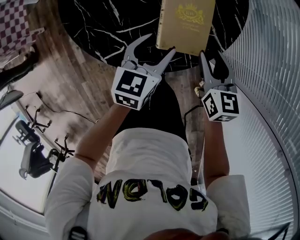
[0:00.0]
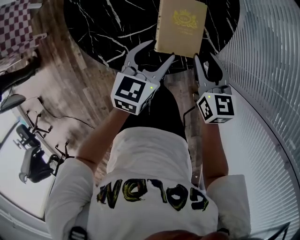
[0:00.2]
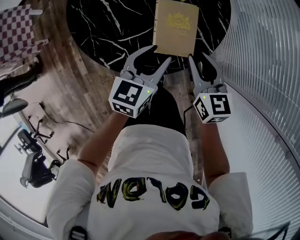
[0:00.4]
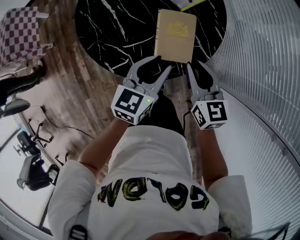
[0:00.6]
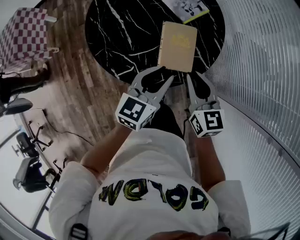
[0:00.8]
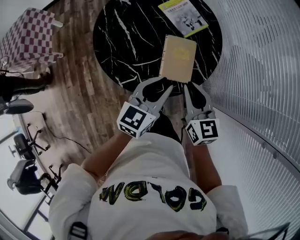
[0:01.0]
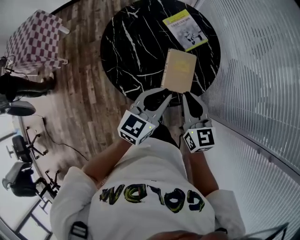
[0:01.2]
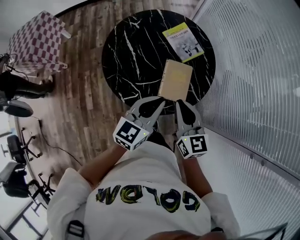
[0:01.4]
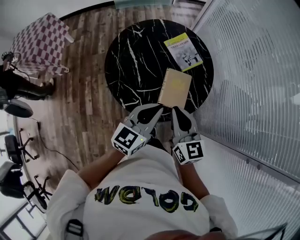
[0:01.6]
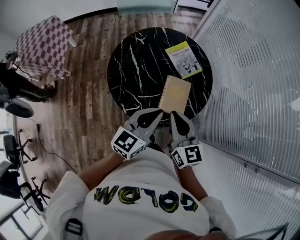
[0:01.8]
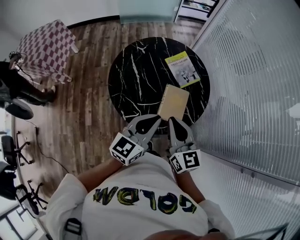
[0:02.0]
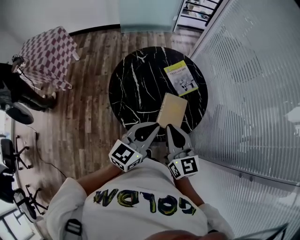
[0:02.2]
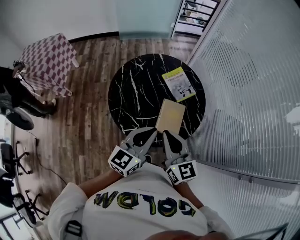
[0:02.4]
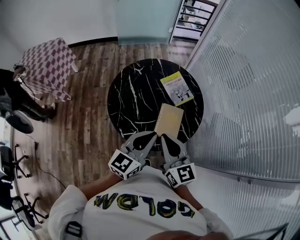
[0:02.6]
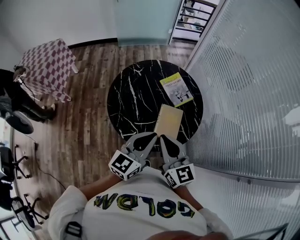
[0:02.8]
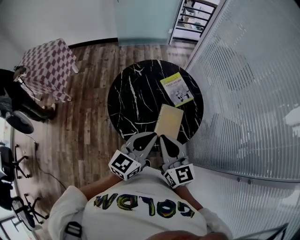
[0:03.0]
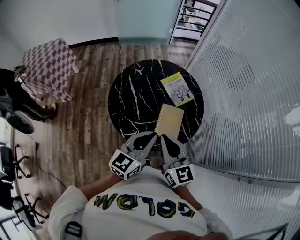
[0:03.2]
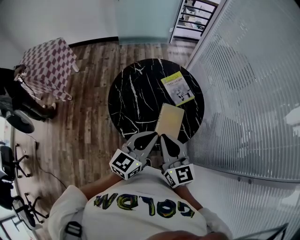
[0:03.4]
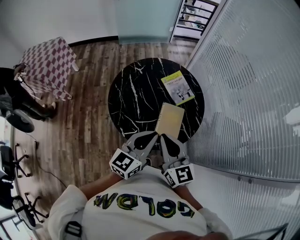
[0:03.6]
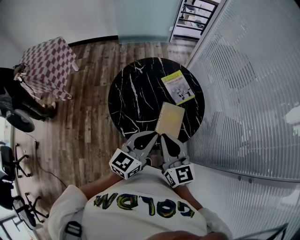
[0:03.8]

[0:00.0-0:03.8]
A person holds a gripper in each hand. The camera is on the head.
0:00.0 to 0:01.2: Both grippers travel together upward, approximately 20 cm. The left gripper closes; the right gripper closes up.
0:01.2 to 0:02.6: The left gripper heads upward, covering roughly 10 cm; the right gripper is displaced upward and to the left by approximately 15 cm.
0:02.6 to 0:03.8: Neither gripper changes place.

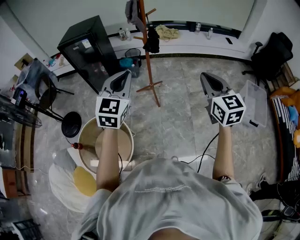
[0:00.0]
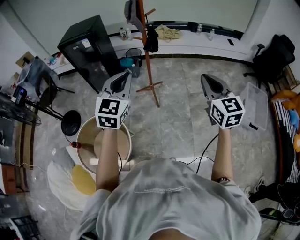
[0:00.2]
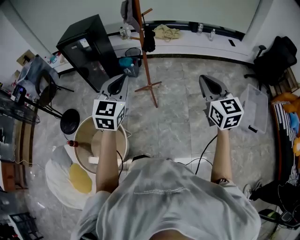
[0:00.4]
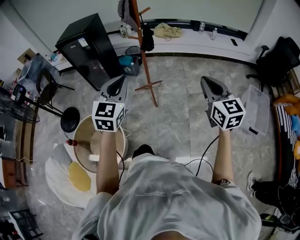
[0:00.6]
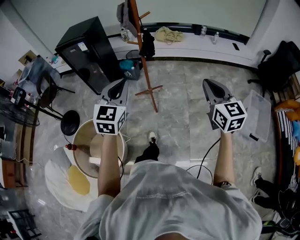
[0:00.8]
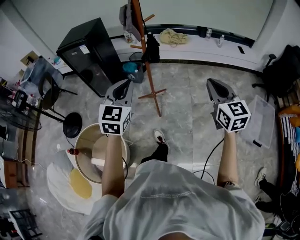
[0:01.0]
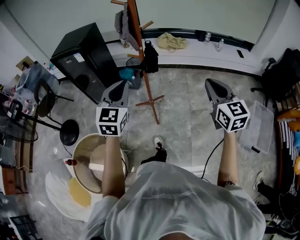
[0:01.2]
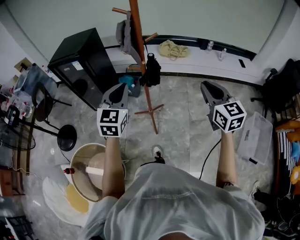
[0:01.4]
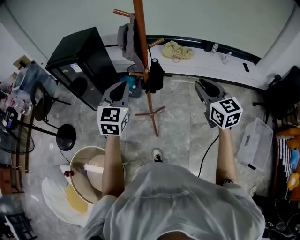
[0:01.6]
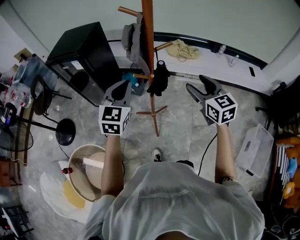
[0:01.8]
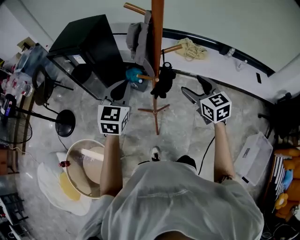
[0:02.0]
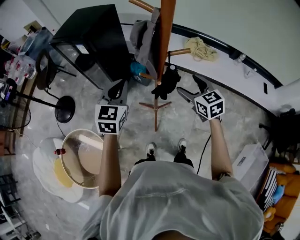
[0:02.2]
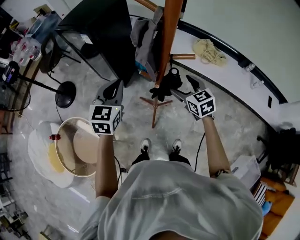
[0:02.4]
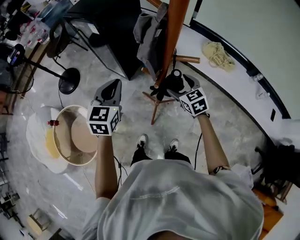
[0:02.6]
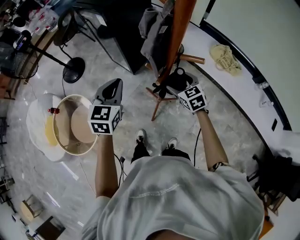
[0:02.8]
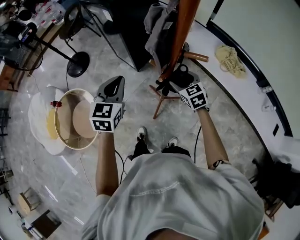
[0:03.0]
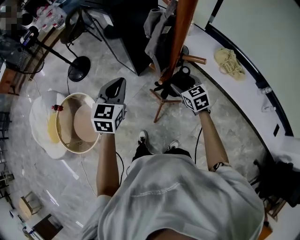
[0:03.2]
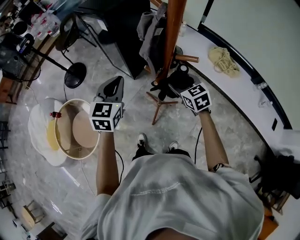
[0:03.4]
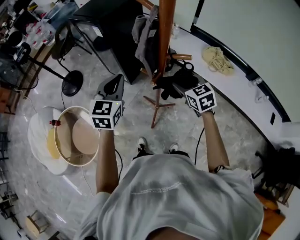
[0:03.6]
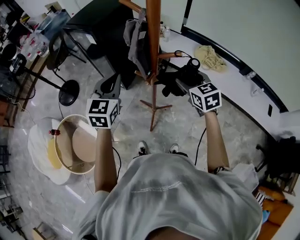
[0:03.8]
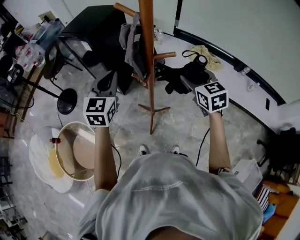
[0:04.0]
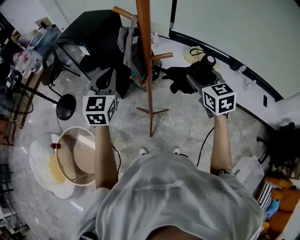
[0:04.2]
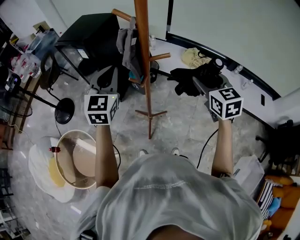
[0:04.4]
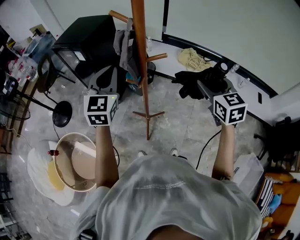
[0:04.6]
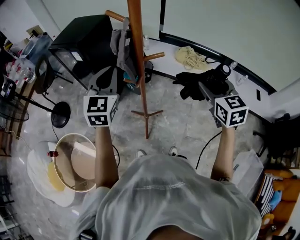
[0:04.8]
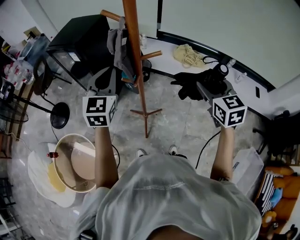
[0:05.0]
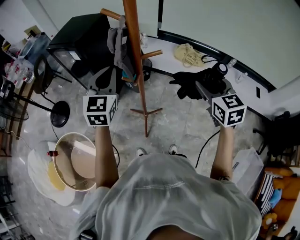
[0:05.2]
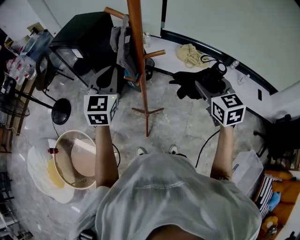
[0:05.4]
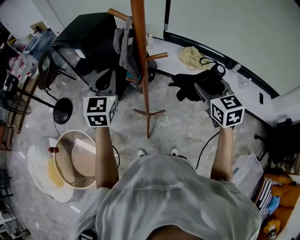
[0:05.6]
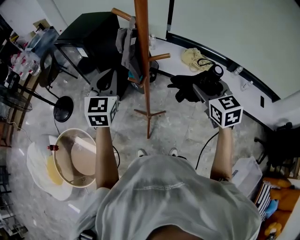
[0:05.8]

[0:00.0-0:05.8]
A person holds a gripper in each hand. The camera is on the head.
0:00.0 to 0:01.4: The grippers both shift forward by approximately 30 cm.
0:01.4 to 0:02.8: The right gripper ends up some 40 cm from where it was, rotates some 50 degrees, and opens its fingers. Meanwhile the left gripper moves some 15 cm, and rotates some 40 degrees.
0:02.8 to 0:04.4: The right gripper shifts about 30 cm upward, to the right and backward, and turns by approximately 30 degrees. The left gripper goes about 15 cm upward and to the right, and turns by some 20 degrees.
0:04.4 to 0:05.8: The grippers make only small movements.

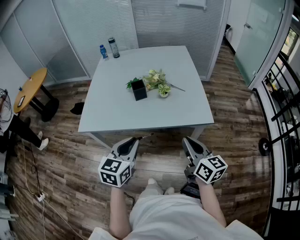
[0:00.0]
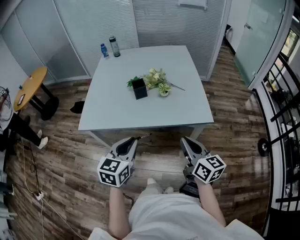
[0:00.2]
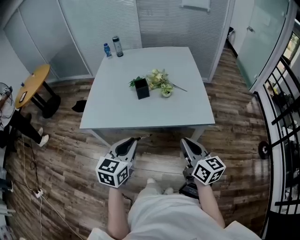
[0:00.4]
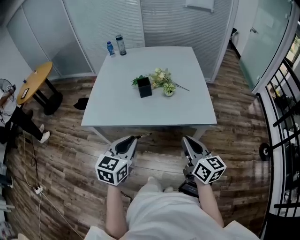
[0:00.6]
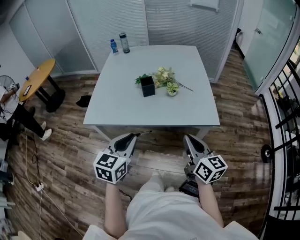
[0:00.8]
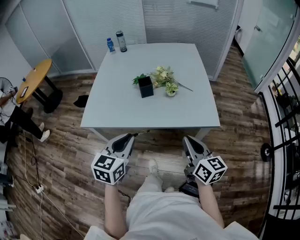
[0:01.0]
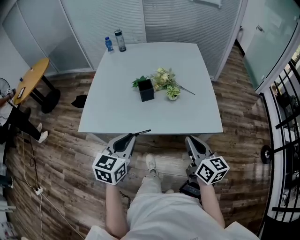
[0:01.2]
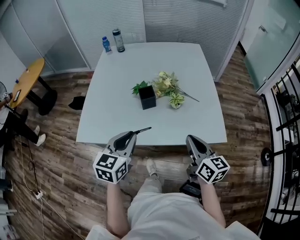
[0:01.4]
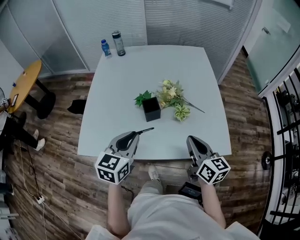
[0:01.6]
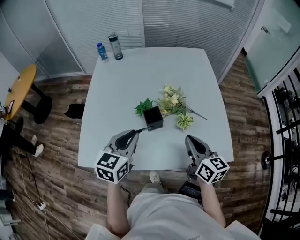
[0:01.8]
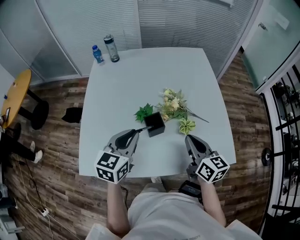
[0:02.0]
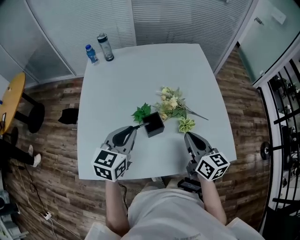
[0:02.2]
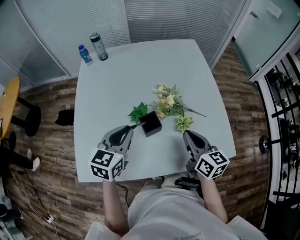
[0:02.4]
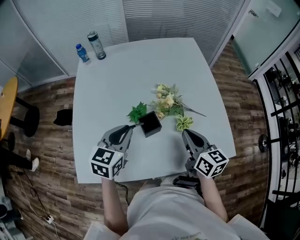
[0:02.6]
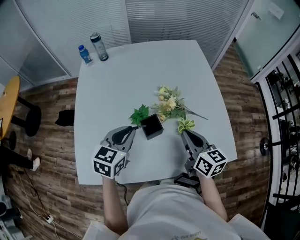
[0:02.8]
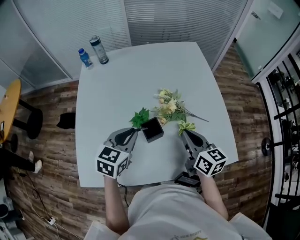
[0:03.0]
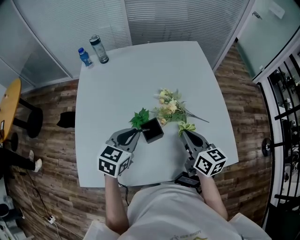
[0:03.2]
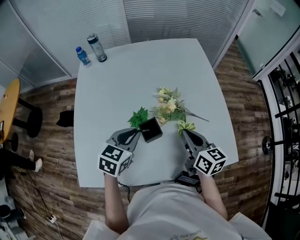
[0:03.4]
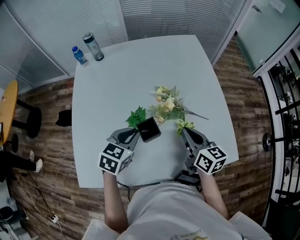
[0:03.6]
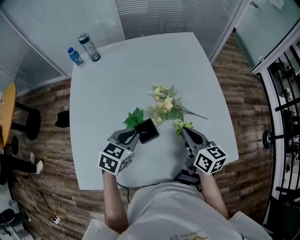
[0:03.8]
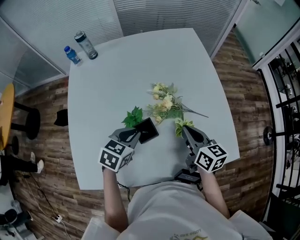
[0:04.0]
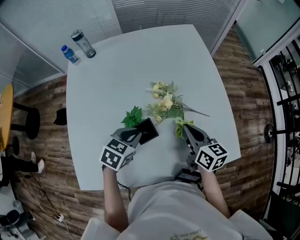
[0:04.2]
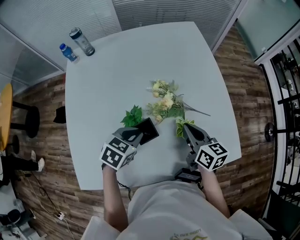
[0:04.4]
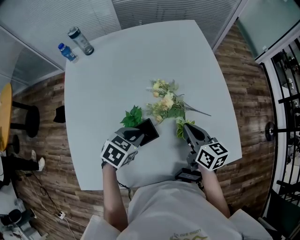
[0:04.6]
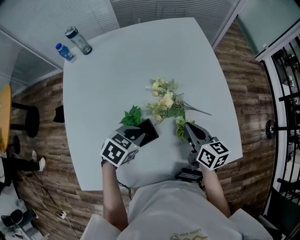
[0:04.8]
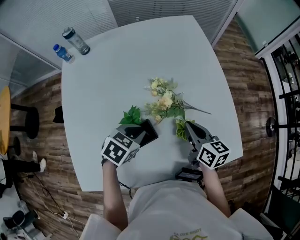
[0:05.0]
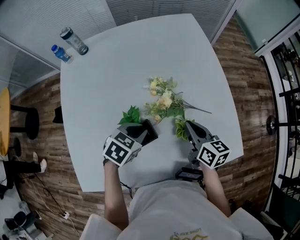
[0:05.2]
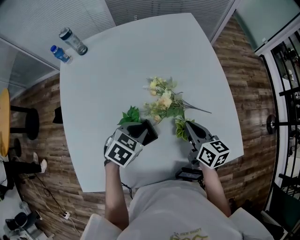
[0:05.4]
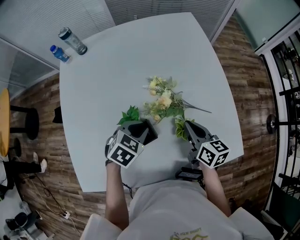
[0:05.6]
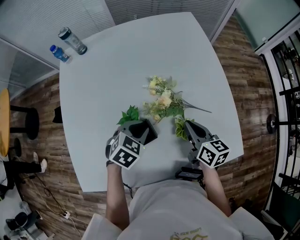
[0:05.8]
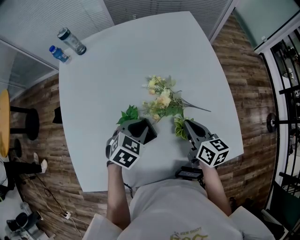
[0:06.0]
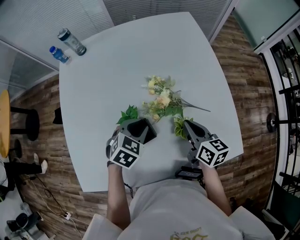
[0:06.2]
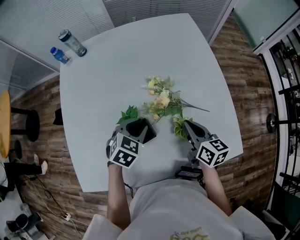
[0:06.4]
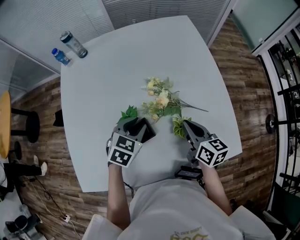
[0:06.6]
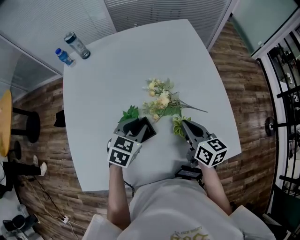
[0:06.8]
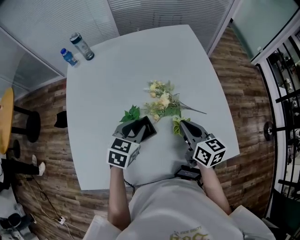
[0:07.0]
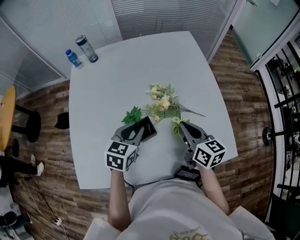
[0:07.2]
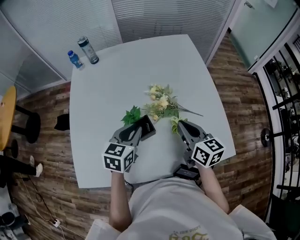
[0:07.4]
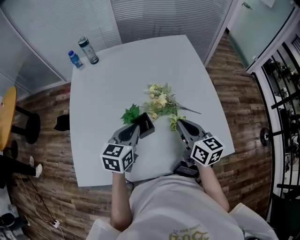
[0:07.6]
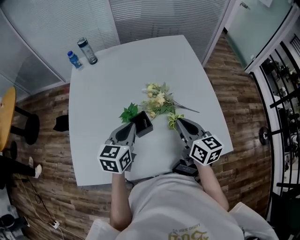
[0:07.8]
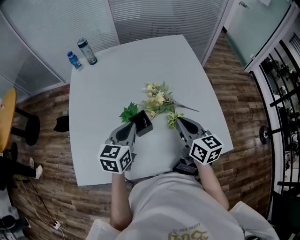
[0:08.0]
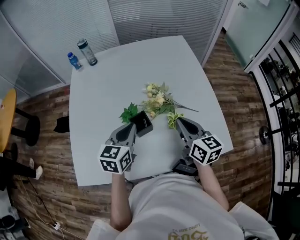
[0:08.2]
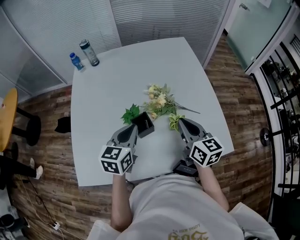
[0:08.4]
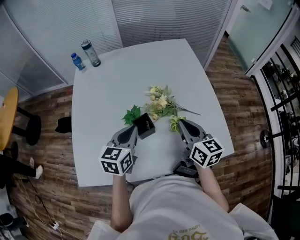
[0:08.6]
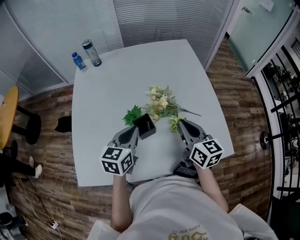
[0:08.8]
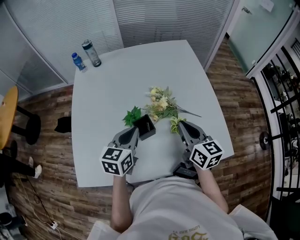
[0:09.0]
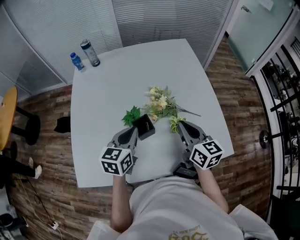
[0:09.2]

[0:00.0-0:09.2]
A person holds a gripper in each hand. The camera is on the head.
0:00.0 to 0:01.6: The two grippers go approximately 25 cm forward.
0:01.6 to 0:03.0: Both grippers move forward, some 15 cm.
0:03.0 to 0:04.6: The left gripper travels downward by about 10 cm, and changes its angle by approximately 30 degrees. Meanwhile the right gripper moves downward and forward, some 10 cm.
0:04.6 to 0:06.2: The grippers move only a little.
0:06.2 to 0:07.6: Both grippers move upward and backward, roughly 10 cm. The left gripper turns by approximately 40 degrees.
0:07.6 to 0:09.2: There are only small adjustments of the grippers.

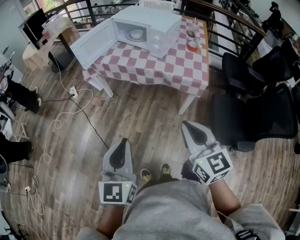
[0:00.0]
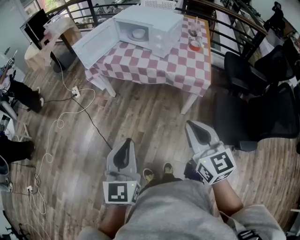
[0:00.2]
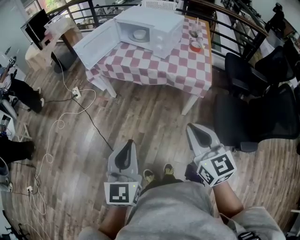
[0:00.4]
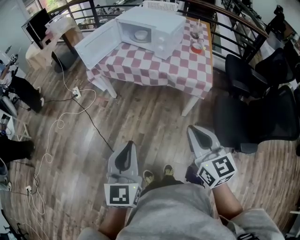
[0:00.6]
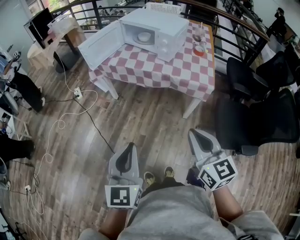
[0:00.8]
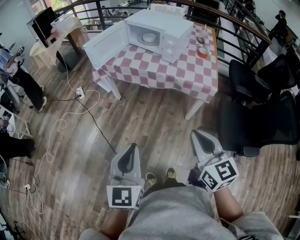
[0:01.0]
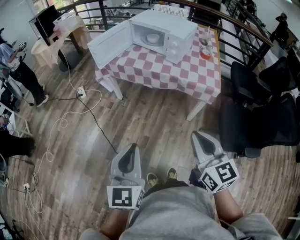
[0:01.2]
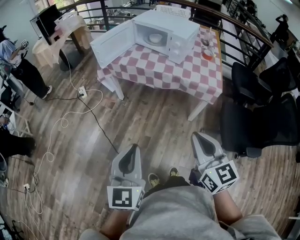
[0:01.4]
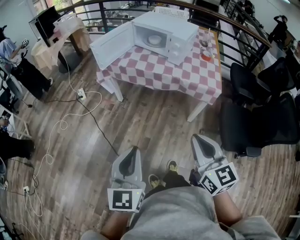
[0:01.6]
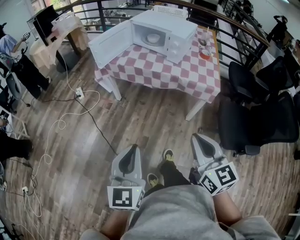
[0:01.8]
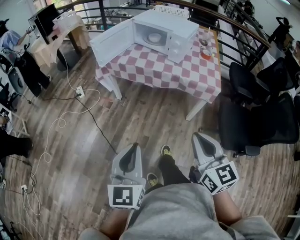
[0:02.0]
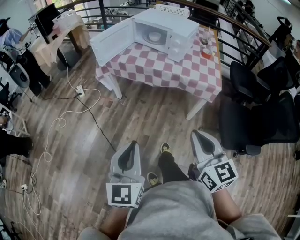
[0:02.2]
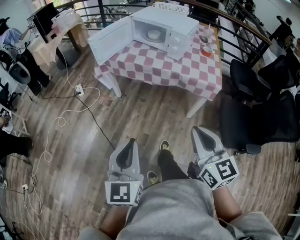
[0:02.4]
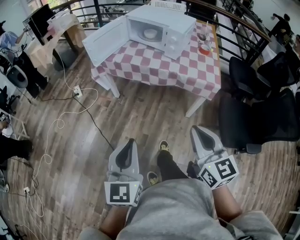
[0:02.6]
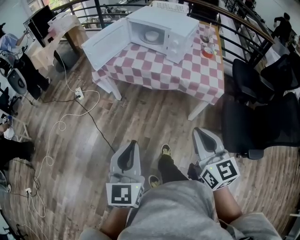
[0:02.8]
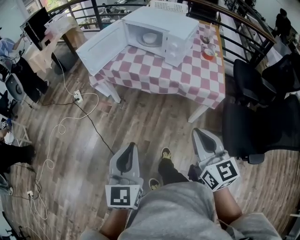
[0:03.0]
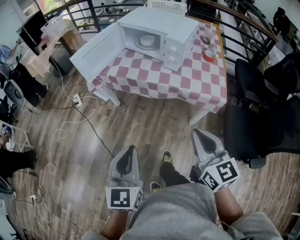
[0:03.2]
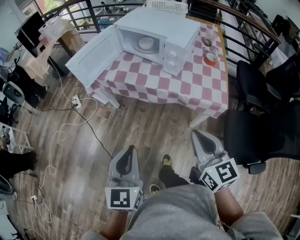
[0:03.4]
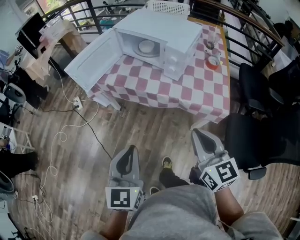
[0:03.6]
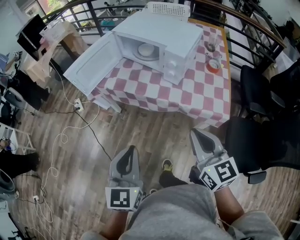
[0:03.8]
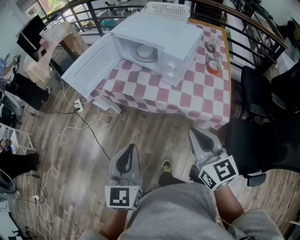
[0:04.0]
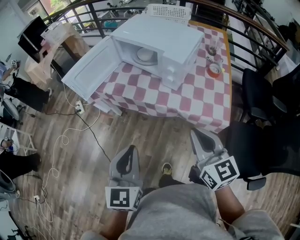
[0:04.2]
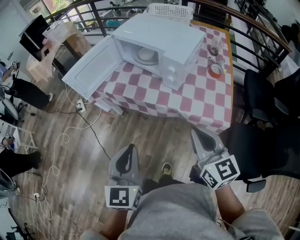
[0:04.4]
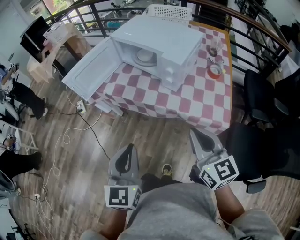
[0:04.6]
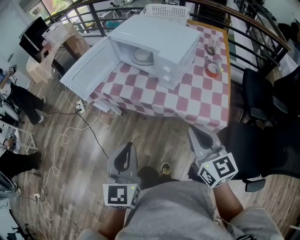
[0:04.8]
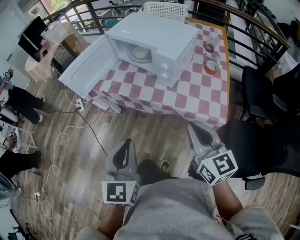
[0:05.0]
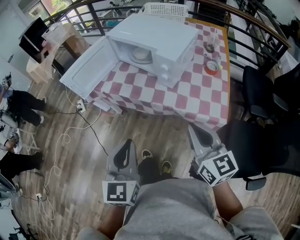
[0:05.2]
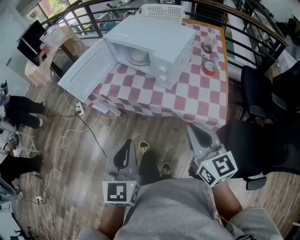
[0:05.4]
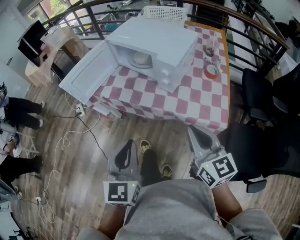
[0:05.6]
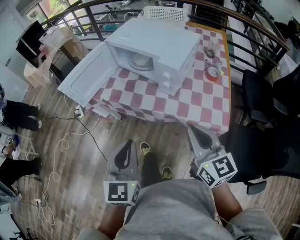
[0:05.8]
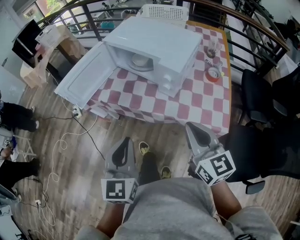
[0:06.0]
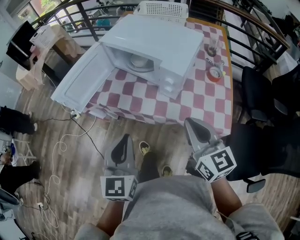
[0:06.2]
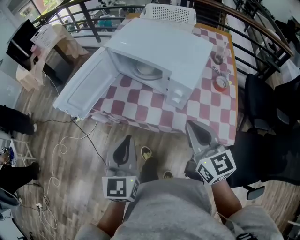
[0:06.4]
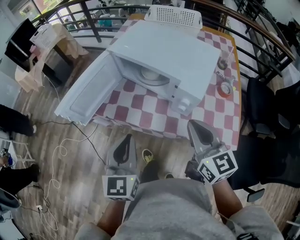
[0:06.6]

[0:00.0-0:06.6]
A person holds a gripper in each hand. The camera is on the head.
0:00.0 to 0:01.6: Both grippers move to the left, some 5 cm.
0:01.6 to 0:03.2: Both grippers travel together forward, roughly 15 cm.
0:03.2 to 0:05.0: The grippers both shift forward and to the right by some 15 cm.
0:05.0 to 0:06.6: Both grippers move forward, approximately 20 cm.
